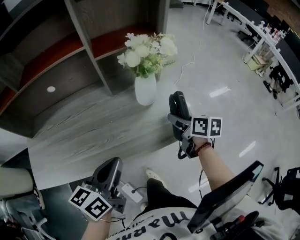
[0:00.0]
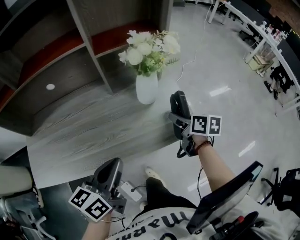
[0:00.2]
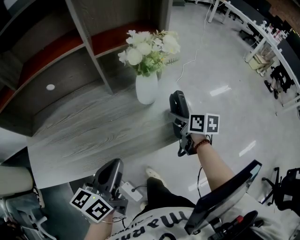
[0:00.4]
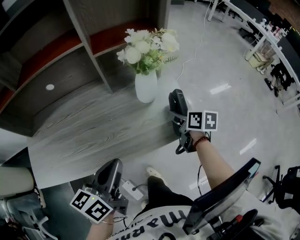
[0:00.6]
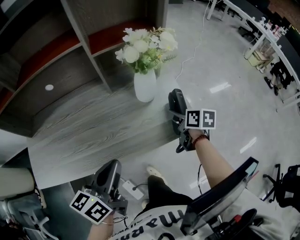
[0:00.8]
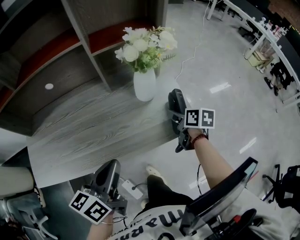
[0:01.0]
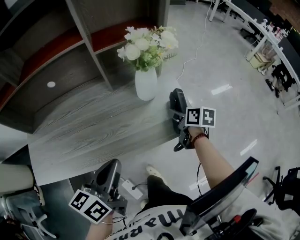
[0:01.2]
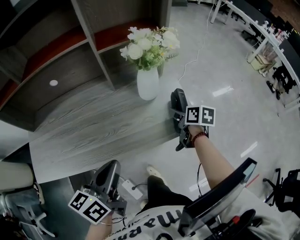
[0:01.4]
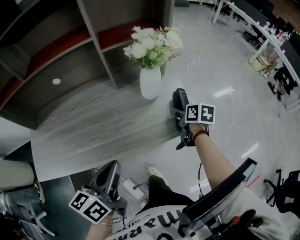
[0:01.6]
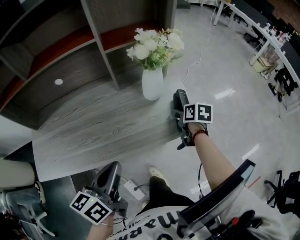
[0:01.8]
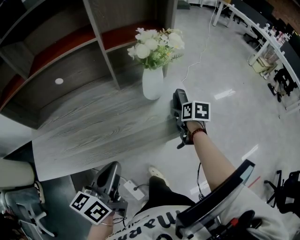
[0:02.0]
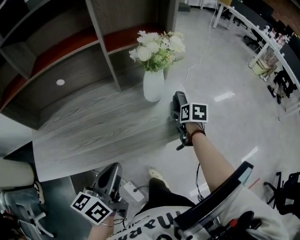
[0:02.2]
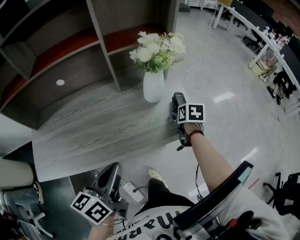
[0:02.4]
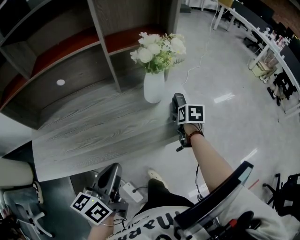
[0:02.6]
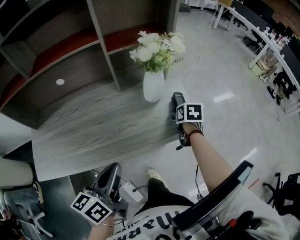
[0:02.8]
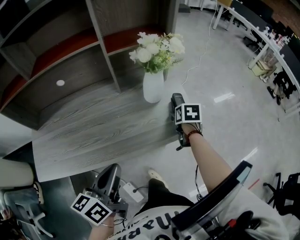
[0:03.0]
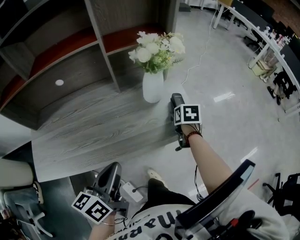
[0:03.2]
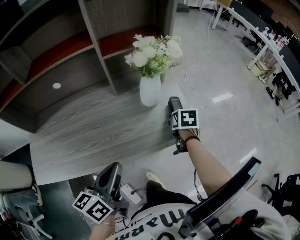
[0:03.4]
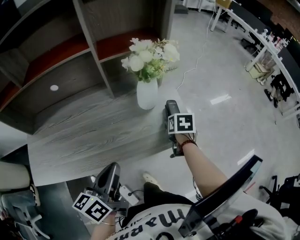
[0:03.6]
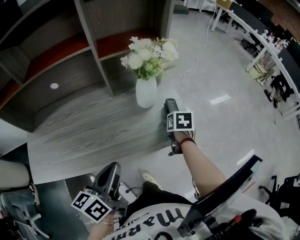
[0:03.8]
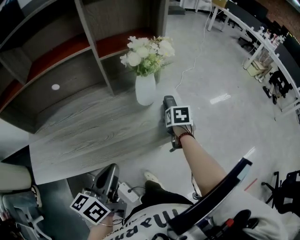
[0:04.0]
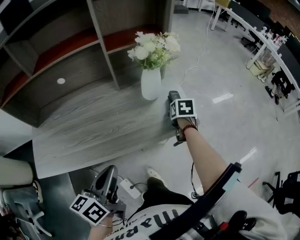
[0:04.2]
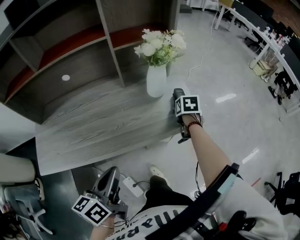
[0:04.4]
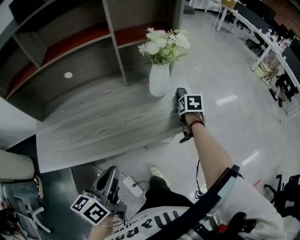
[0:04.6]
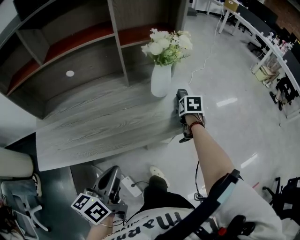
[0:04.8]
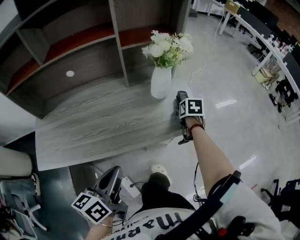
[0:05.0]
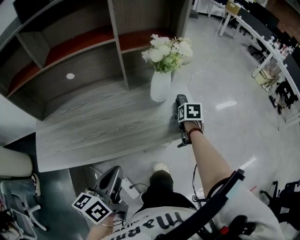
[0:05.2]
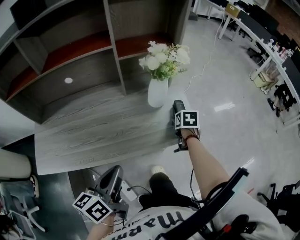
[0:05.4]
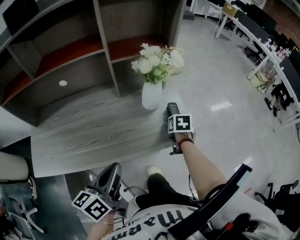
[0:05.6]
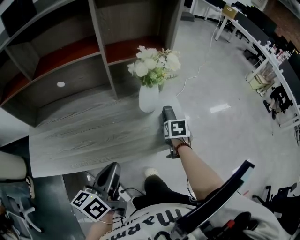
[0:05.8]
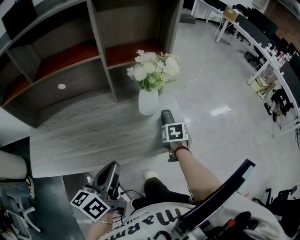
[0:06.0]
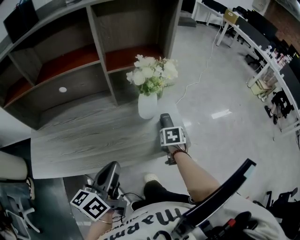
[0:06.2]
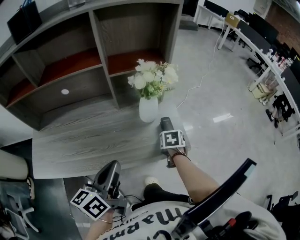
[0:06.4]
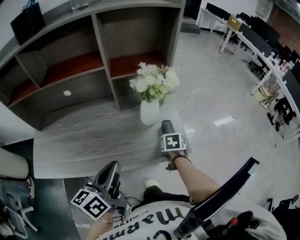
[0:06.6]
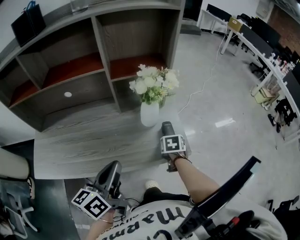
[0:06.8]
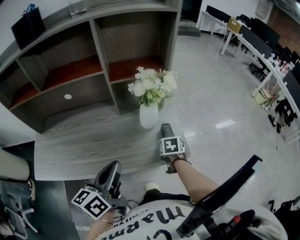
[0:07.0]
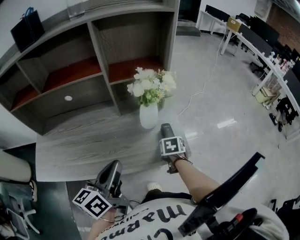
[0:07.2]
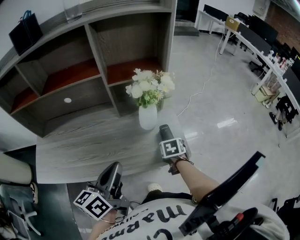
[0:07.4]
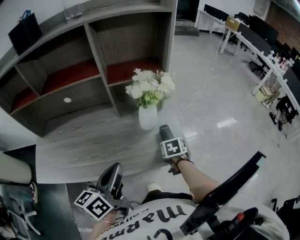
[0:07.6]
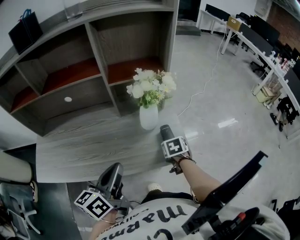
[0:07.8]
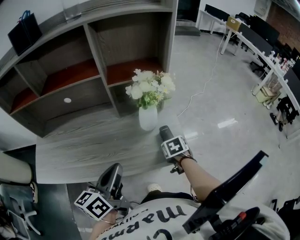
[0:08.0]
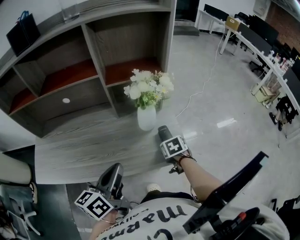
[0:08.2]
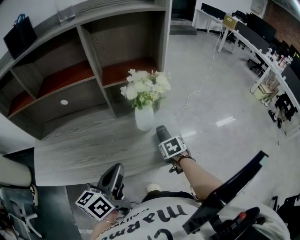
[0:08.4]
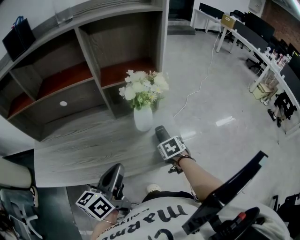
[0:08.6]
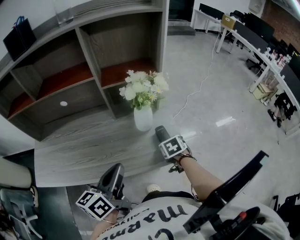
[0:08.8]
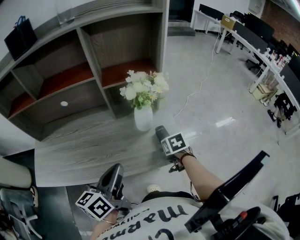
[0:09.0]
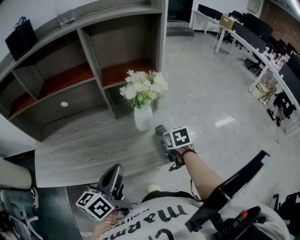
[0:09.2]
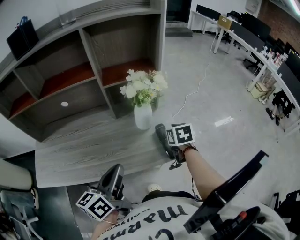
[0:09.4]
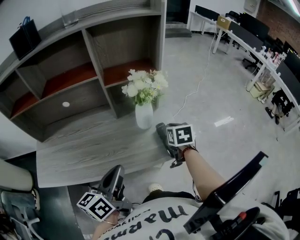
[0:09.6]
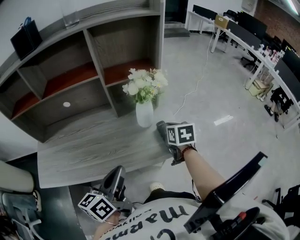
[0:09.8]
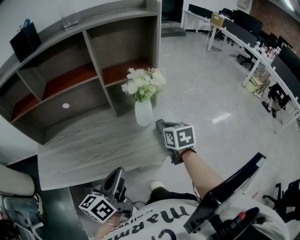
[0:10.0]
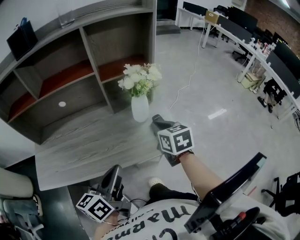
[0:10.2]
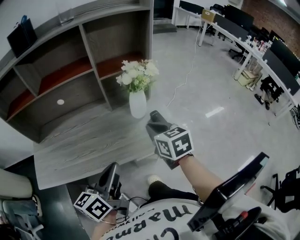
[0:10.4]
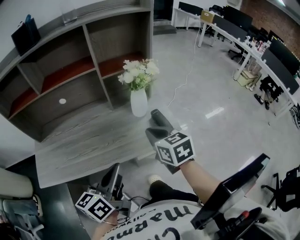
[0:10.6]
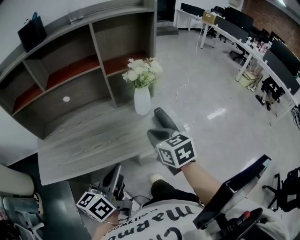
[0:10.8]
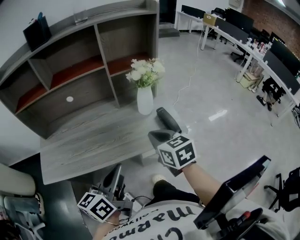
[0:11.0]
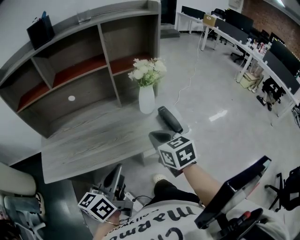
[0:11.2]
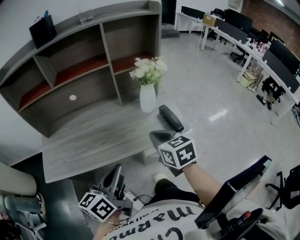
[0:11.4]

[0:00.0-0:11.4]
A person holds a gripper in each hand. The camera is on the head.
0:00.0 to 0:01.4: The right gripper is displaced downward by approximately 5 cm.
0:01.4 to 0:02.8: The right gripper changes its angle by some 20 degrees.
0:02.8 to 0:04.2: There are only small adjustments of the grippers.
0:04.2 to 0:05.6: The grippers move only a little.
0:05.6 to 0:07.2: The left gripper is displaced forward by approximately 5 cm.
0:07.2 to 0:08.6: There are only small adjustments of the grippers.
0:08.6 to 0:10.0: The left gripper is displaced backward by roughly 5 cm. Meanwhile the right gripper is displaced upward by approximately 15 cm, swivels some 30 degrees, and closes.
0:10.0 to 0:11.4: The left gripper moves backward and to the left, some 10 cm. Meanwhile the right gripper travels backward and to the left by some 20 cm.

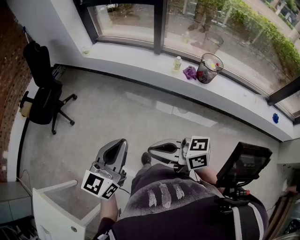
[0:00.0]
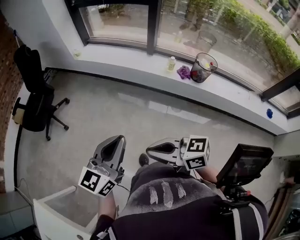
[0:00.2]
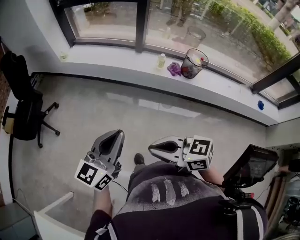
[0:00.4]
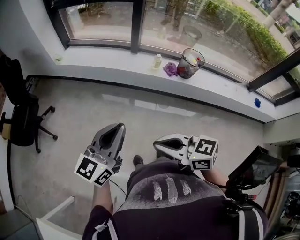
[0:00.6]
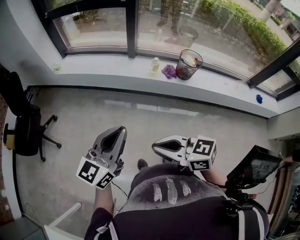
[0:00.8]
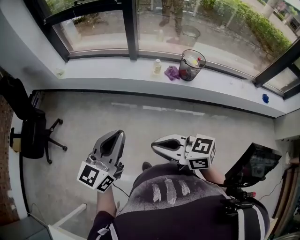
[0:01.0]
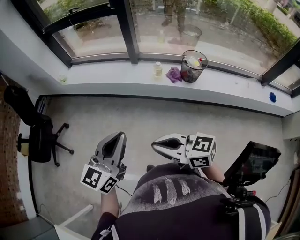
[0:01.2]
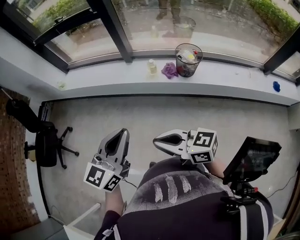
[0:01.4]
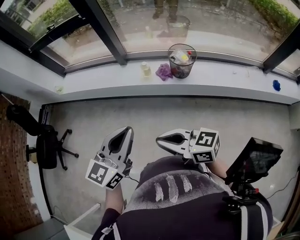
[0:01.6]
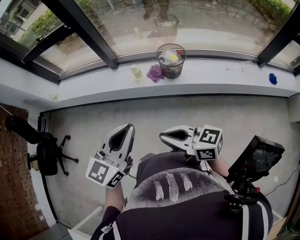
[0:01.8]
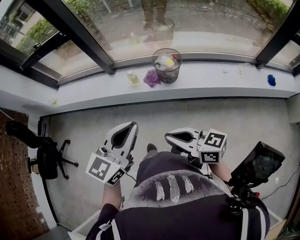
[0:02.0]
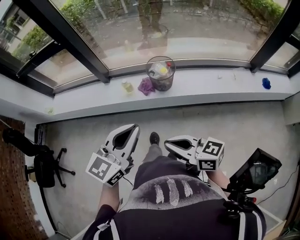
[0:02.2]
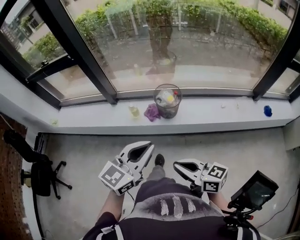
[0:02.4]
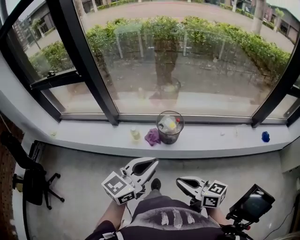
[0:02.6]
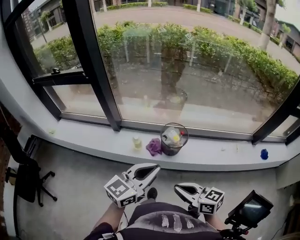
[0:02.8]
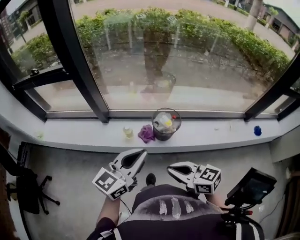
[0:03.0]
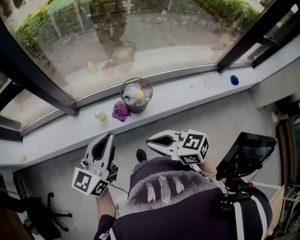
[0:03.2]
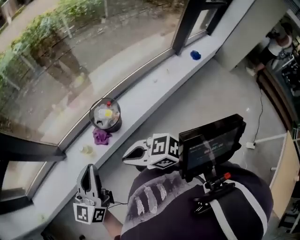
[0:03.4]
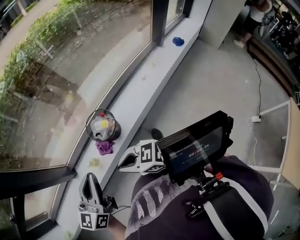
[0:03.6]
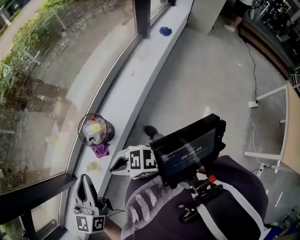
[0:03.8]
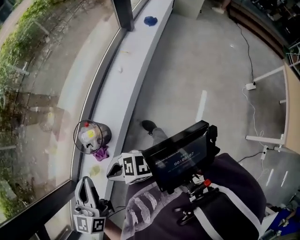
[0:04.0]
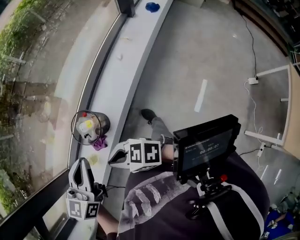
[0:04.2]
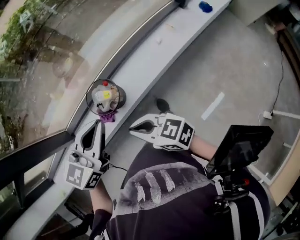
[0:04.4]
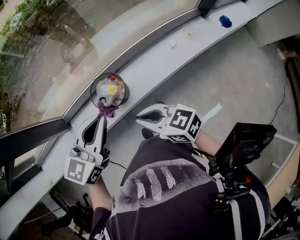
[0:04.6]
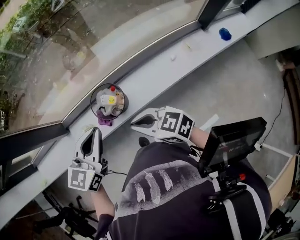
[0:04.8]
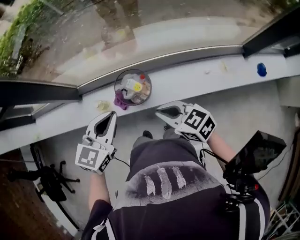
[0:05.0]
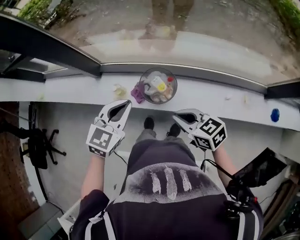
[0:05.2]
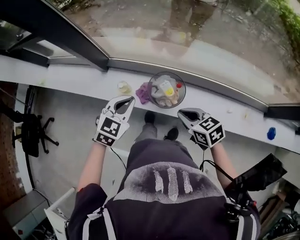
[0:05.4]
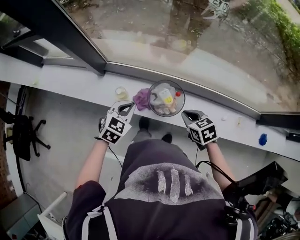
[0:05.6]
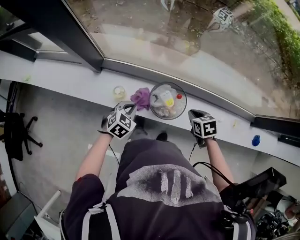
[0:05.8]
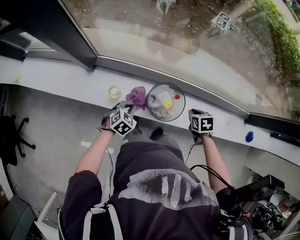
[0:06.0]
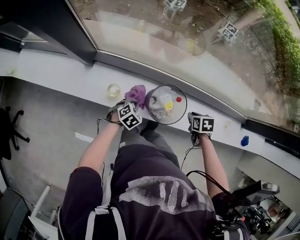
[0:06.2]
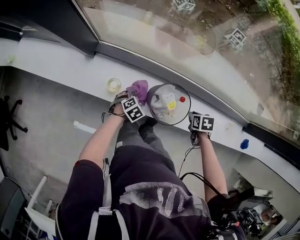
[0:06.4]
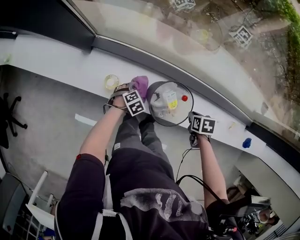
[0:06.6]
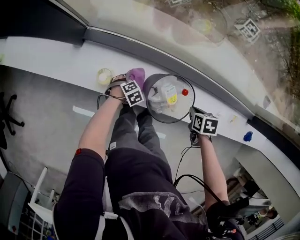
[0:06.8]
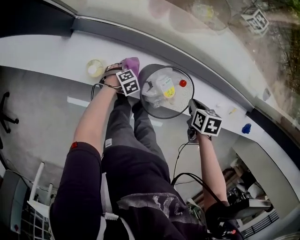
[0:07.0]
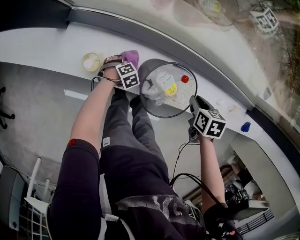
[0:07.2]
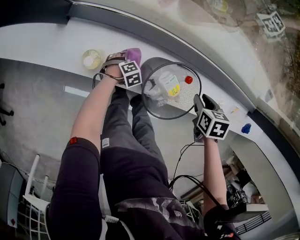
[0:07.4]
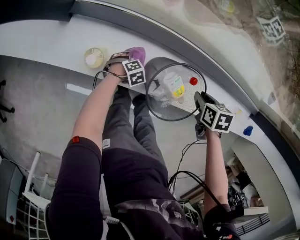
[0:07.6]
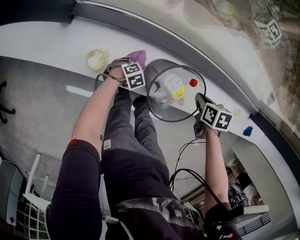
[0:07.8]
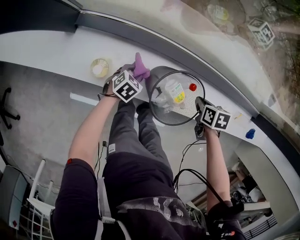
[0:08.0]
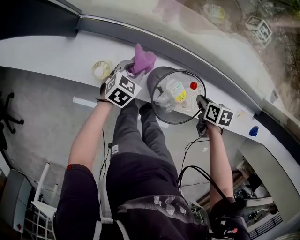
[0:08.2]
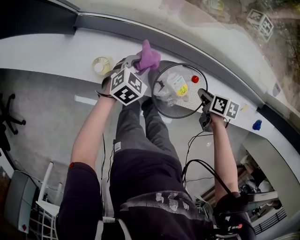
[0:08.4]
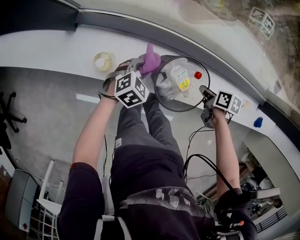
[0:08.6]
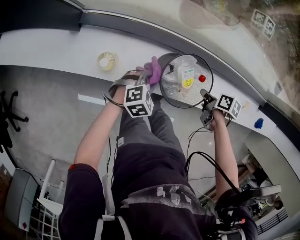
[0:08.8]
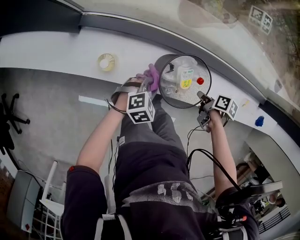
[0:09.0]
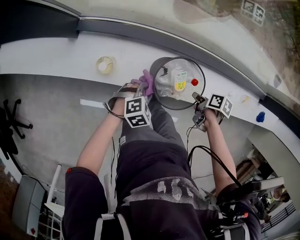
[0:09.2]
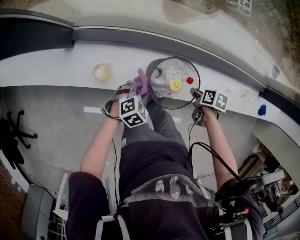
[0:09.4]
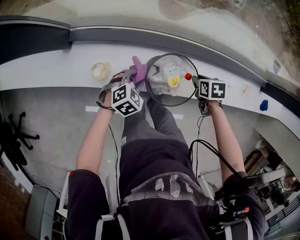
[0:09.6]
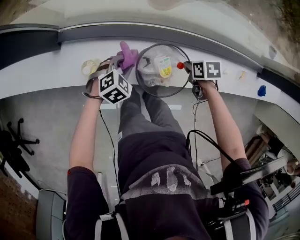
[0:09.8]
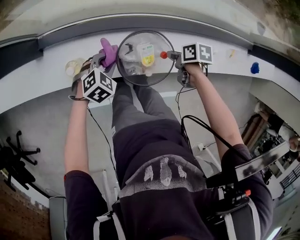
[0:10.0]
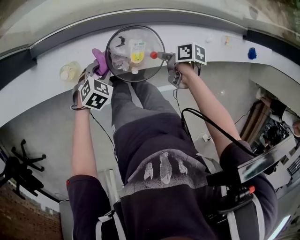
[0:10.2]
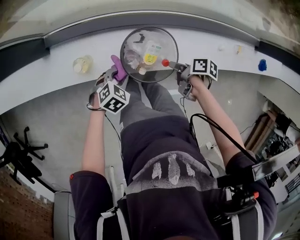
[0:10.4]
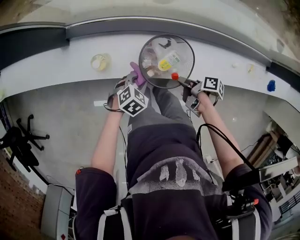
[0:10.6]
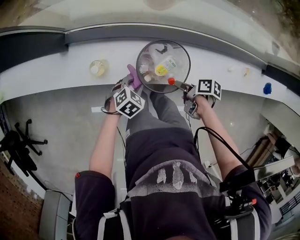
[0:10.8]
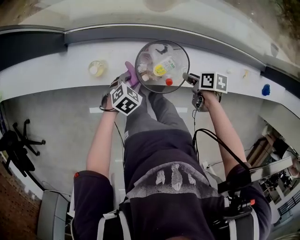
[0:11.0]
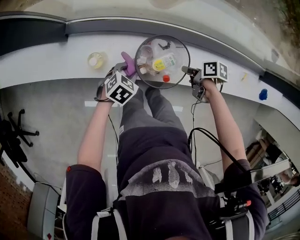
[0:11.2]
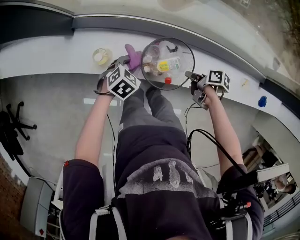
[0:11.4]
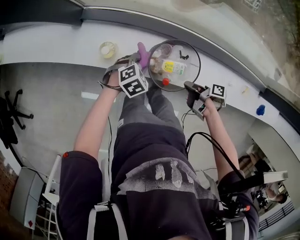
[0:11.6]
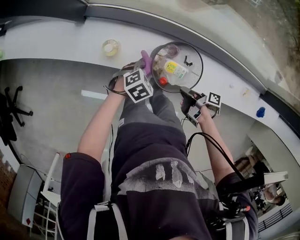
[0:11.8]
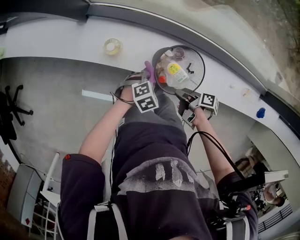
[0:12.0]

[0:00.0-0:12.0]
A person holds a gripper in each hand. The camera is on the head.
0:00.0 to 0:01.6: Both grippers travel together to the right and forward, roughly 30 cm.
0:01.6 to 0:03.0: The grippers both shift forward and to the right by roughly 25 cm. The right gripper changes its angle by roughly 20 degrees.
0:03.0 to 0:04.4: The right gripper travels to the right and forward by about 15 cm, and changes its angle by some 20 degrees; the left gripper moves to the right and forward, approximately 25 cm, and rotates approximately 30 degrees.
0:04.4 to 0:06.0: The left gripper goes about 35 cm downward, and points its fingers about 40 degrees further downward; the right gripper ends up roughly 35 cm from where it was, and points its fingers some 50 degrees further downward.
0:06.0 to 0:07.6: The left gripper is displaced downward by about 30 cm, turns by roughly 30 degrees, and opens. Meanwhile the right gripper is displaced downward by approximately 10 cm, and opens up.
0:07.6 to 0:09.0: The left gripper shifts some 20 cm upward, turns by roughly 30 degrees, and closes its fingers, while the right gripper shifts by some 5 cm, and rolls clockwise, seen from behind, by about 40 degrees.
0:10.4 to 0:12.0: The right gripper changes place by approximately 10 cm.
